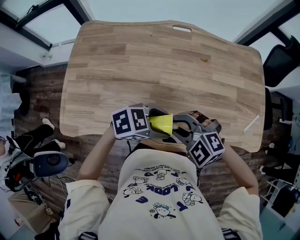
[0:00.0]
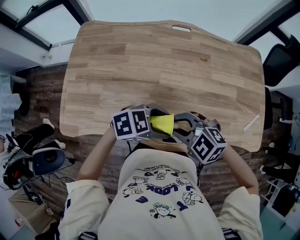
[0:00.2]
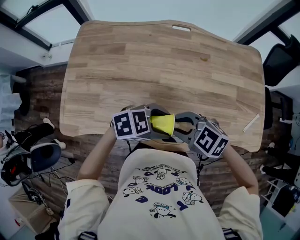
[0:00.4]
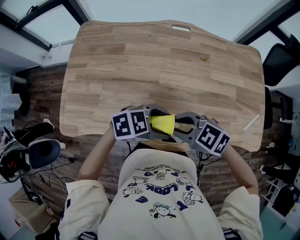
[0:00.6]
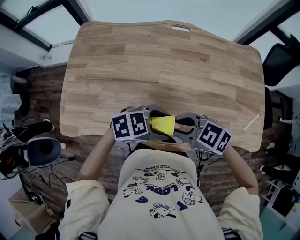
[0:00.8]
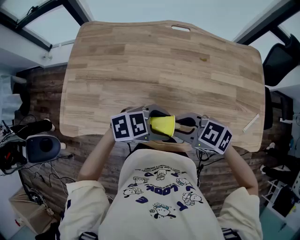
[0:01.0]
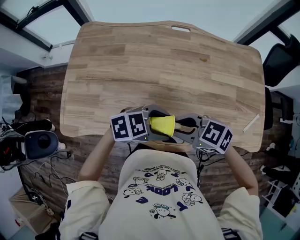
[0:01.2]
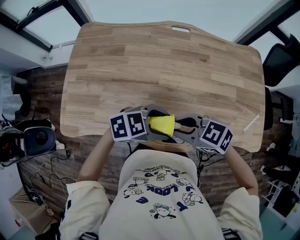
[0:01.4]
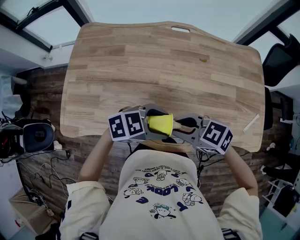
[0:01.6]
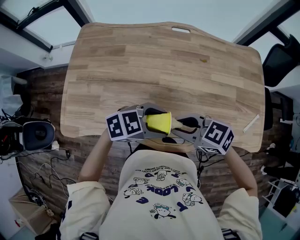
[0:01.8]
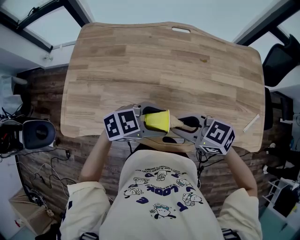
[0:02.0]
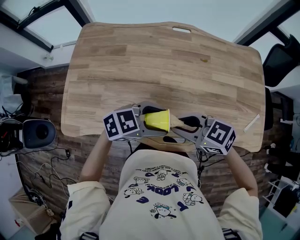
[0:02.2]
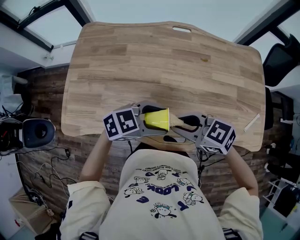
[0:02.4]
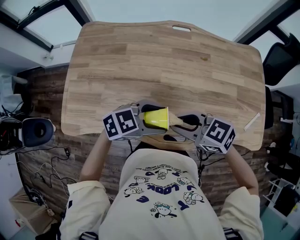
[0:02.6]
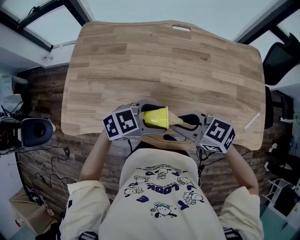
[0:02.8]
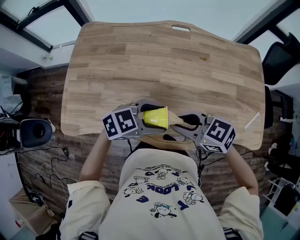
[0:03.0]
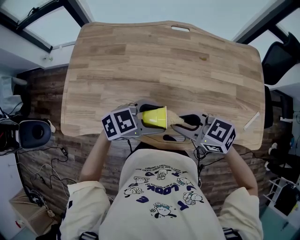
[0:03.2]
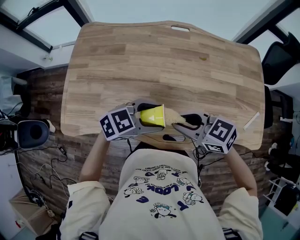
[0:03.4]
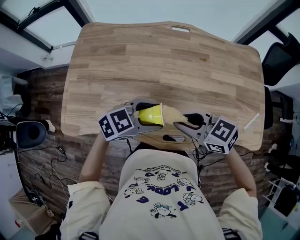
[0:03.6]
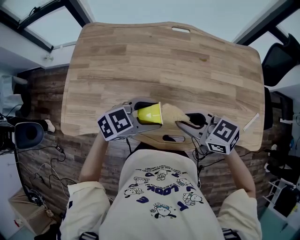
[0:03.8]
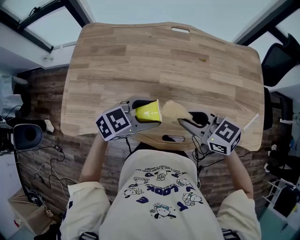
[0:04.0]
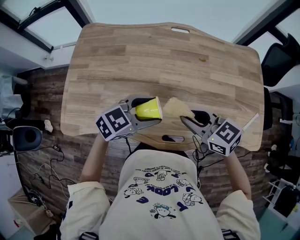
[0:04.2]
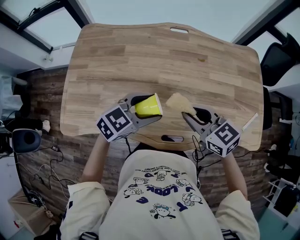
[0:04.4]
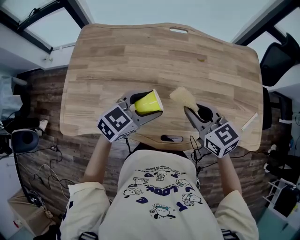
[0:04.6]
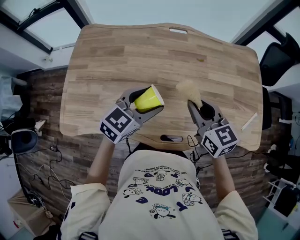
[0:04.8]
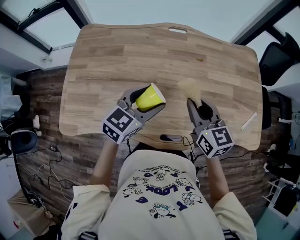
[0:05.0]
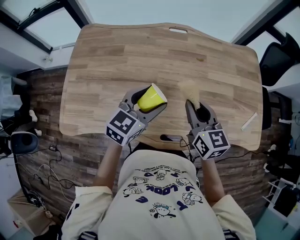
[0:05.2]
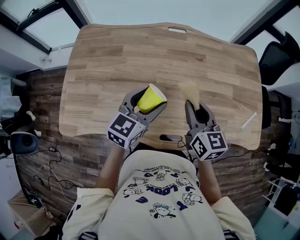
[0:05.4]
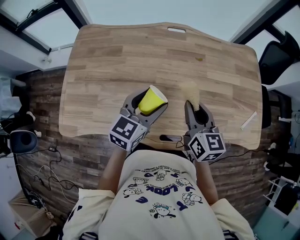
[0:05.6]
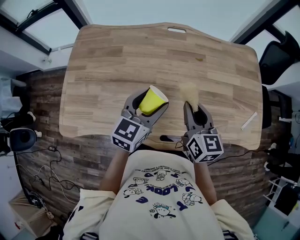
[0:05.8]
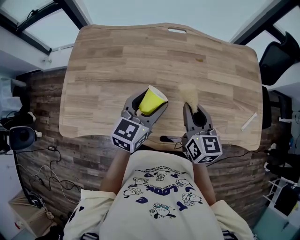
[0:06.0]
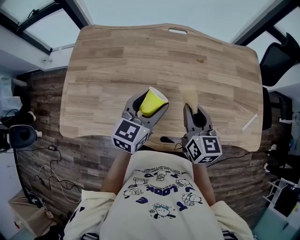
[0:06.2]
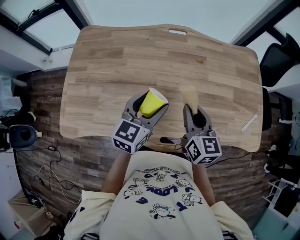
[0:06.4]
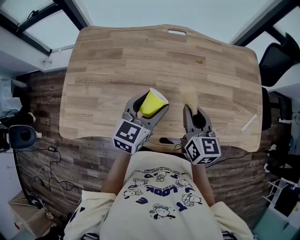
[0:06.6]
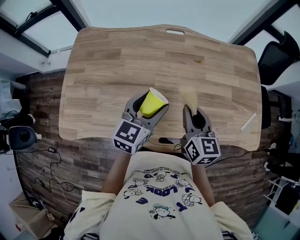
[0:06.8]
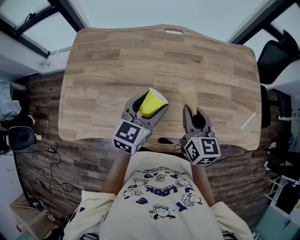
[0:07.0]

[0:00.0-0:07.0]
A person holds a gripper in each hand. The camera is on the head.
0:00.0 to 0:01.4: The right gripper rotates approximately 40 degrees.
0:01.4 to 0:02.8: There are only small adjustments of the grippers.
0:02.8 to 0:04.2: The right gripper shifts by some 5 cm.
0:04.2 to 0:05.6: The left gripper moves some 5 cm, and swivels roughly 30 degrees; the right gripper shifts by about 5 cm, and rotates about 50 degrees.
0:05.6 to 0:07.0: The grippers stay close to where they were, moving slightly.

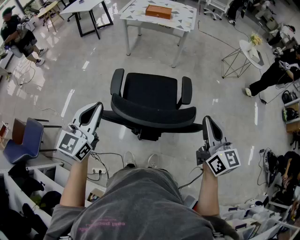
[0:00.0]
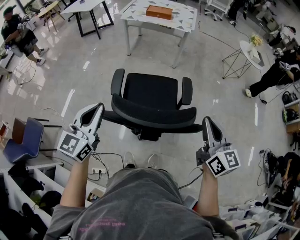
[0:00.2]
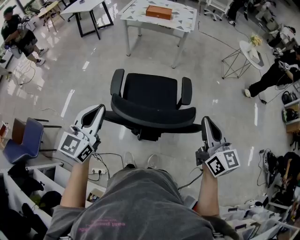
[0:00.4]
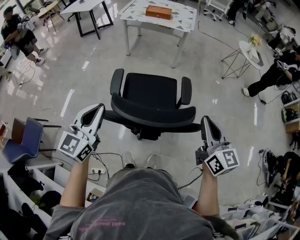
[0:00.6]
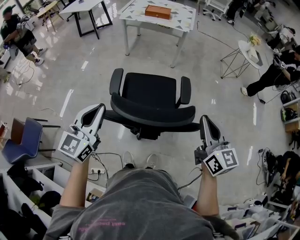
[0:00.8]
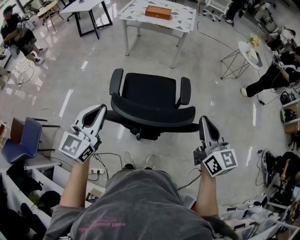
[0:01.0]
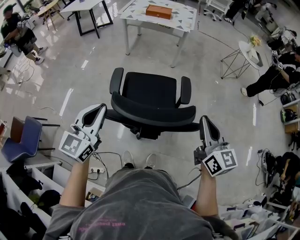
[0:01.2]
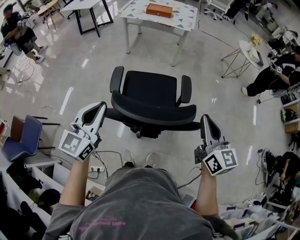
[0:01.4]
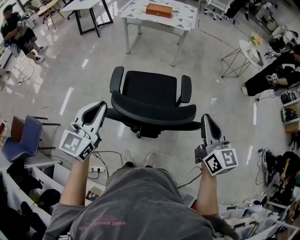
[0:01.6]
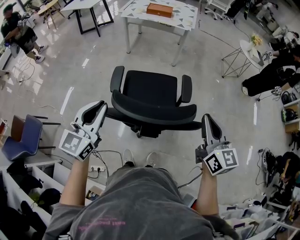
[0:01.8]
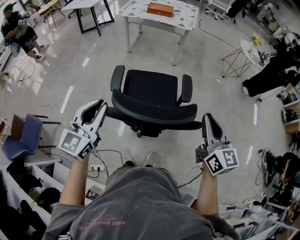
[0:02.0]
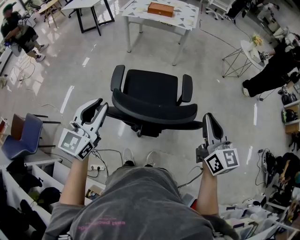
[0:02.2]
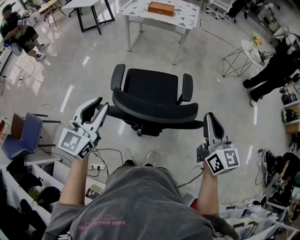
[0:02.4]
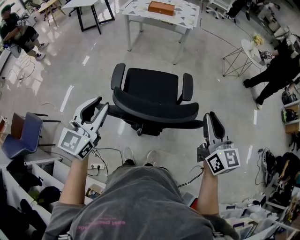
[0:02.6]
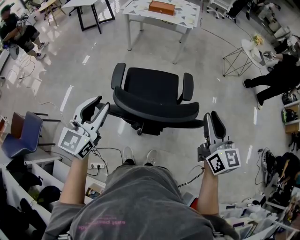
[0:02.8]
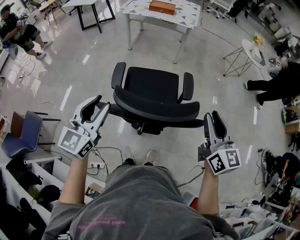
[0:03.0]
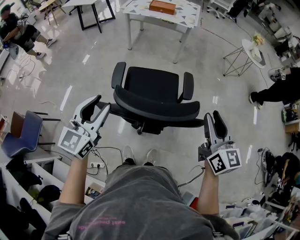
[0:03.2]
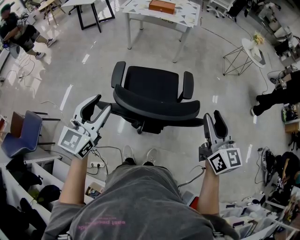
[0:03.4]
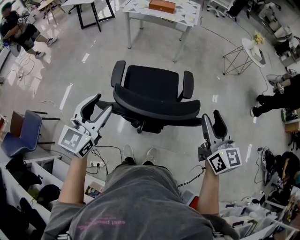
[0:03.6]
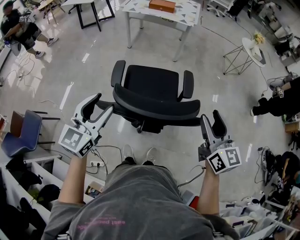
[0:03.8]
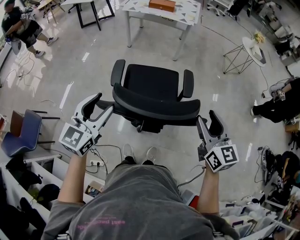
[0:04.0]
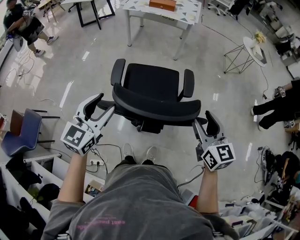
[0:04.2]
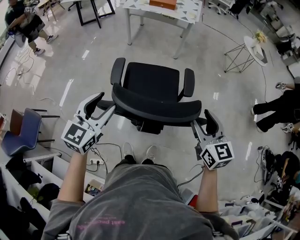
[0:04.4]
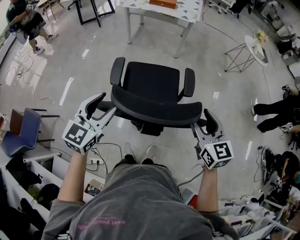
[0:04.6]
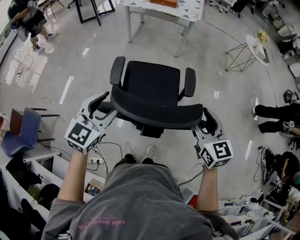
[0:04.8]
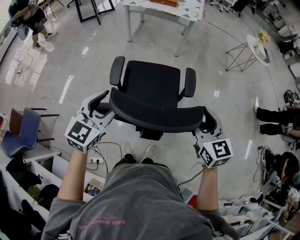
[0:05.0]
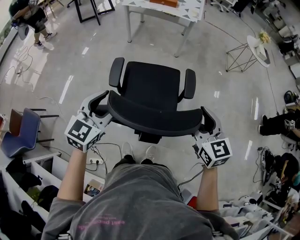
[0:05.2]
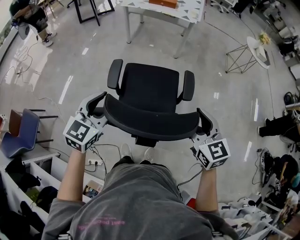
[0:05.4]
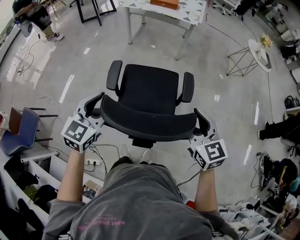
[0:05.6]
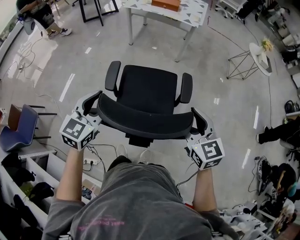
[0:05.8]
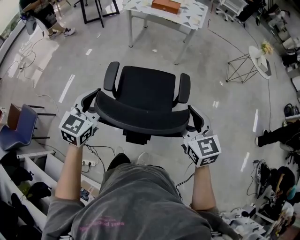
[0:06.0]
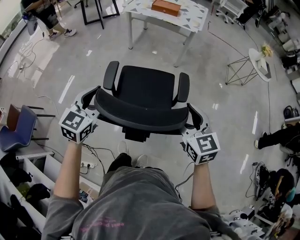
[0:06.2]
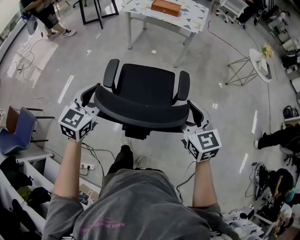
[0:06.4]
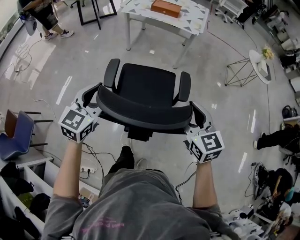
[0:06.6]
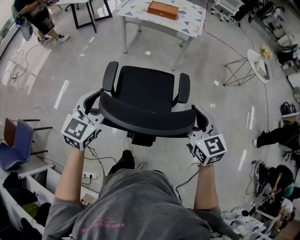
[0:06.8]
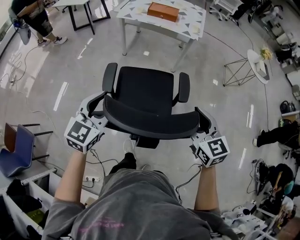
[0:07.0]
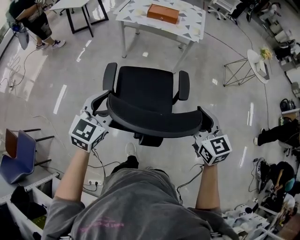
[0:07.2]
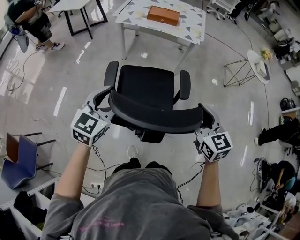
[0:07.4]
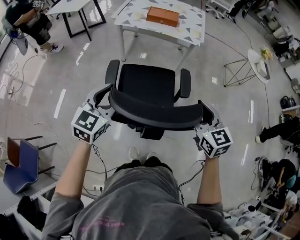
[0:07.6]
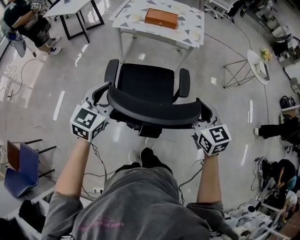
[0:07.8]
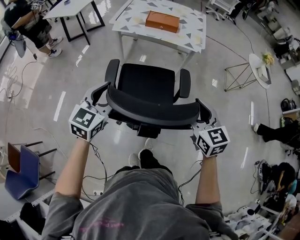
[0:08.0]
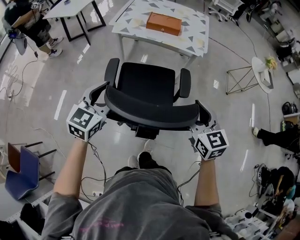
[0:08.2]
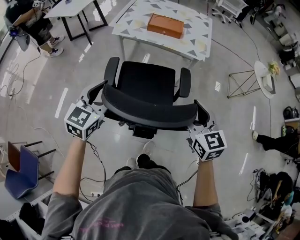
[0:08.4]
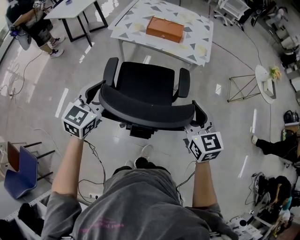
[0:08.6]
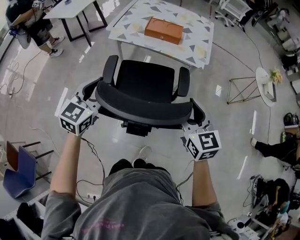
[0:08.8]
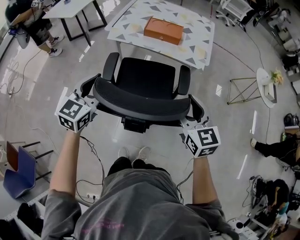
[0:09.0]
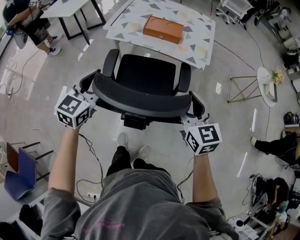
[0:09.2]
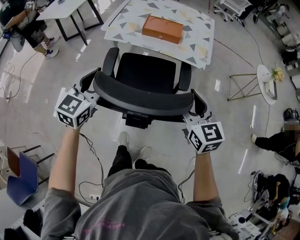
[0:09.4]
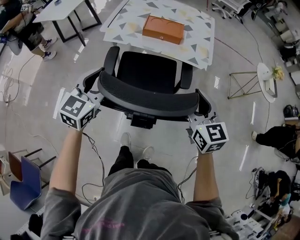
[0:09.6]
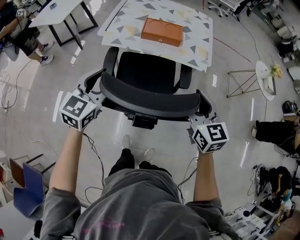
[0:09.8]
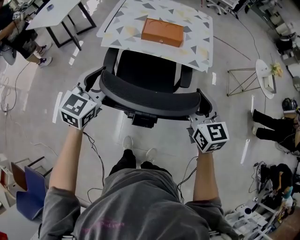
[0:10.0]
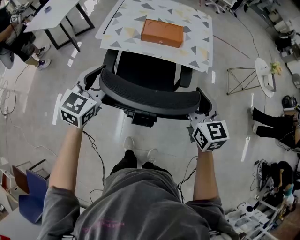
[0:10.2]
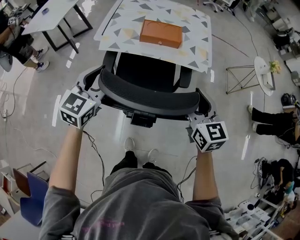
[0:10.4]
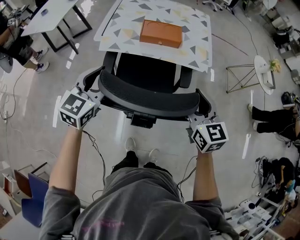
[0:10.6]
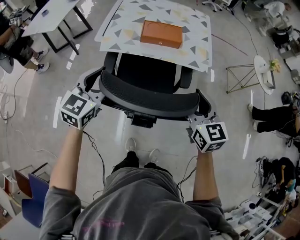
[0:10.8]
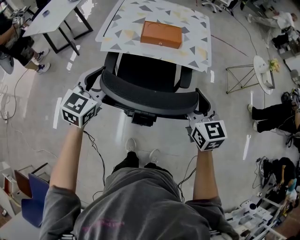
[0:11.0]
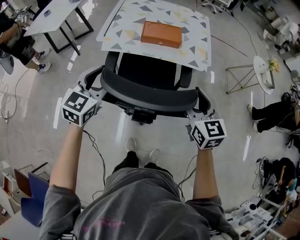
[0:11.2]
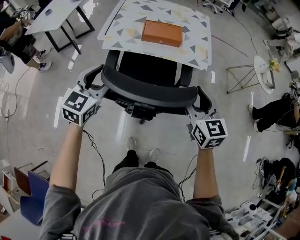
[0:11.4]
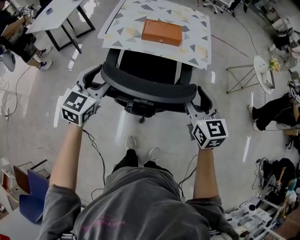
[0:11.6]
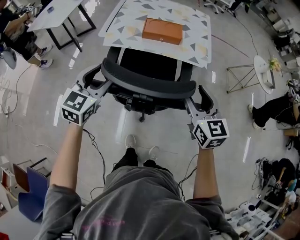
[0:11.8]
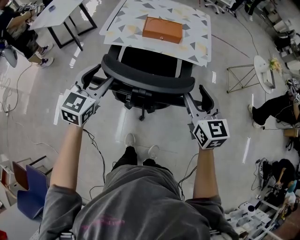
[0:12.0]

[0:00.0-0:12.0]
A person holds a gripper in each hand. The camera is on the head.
0:00.0 to 0:01.6: The grippers stay close to where they were, moving slightly.
0:01.6 to 0:03.0: The right gripper opens up. Meanwhile the left gripper opens.
0:03.0 to 0:04.4: The left gripper opens, while the right gripper is displaced downward by approximately 5 cm, and opens up.
0:04.4 to 0:06.0: The two grippers go some 10 cm forward.
0:06.0 to 0:07.6: Both grippers travel together forward, approximately 25 cm.
0:07.6 to 0:09.0: Both grippers move forward, approximately 25 cm.
0:09.0 to 0:10.4: The two grippers go roughly 15 cm forward.
0:10.4 to 0:12.0: Both grippers move backward, some 5 cm.

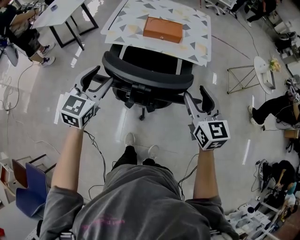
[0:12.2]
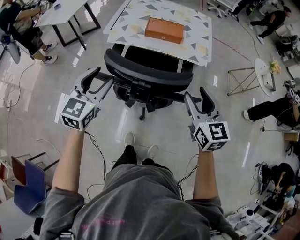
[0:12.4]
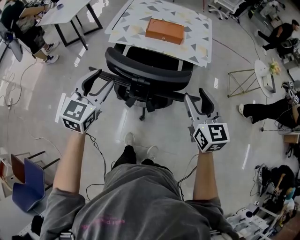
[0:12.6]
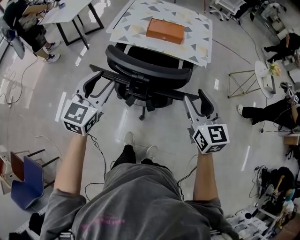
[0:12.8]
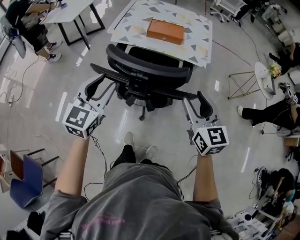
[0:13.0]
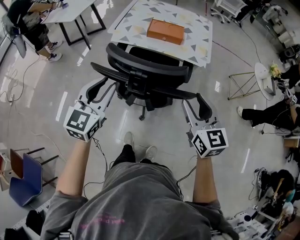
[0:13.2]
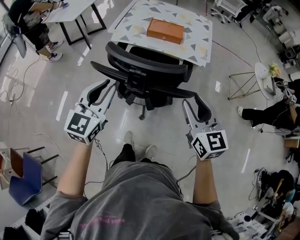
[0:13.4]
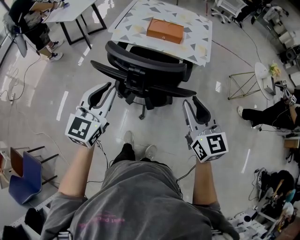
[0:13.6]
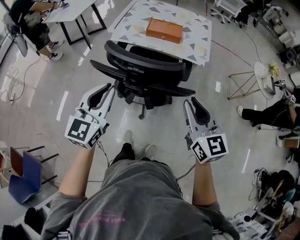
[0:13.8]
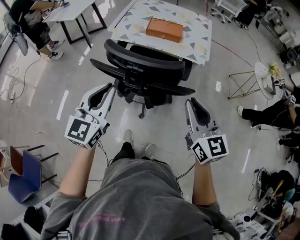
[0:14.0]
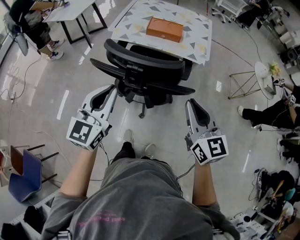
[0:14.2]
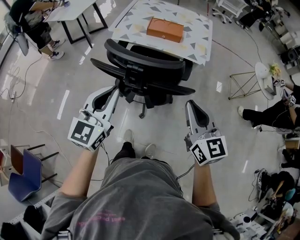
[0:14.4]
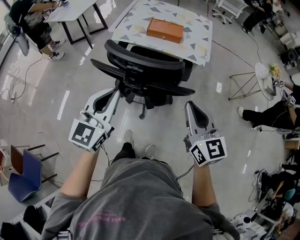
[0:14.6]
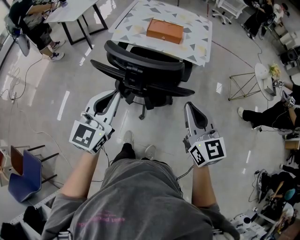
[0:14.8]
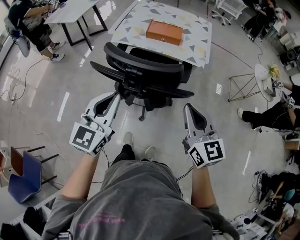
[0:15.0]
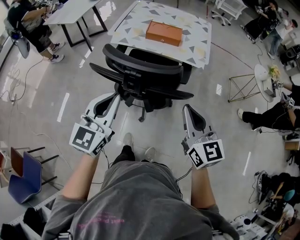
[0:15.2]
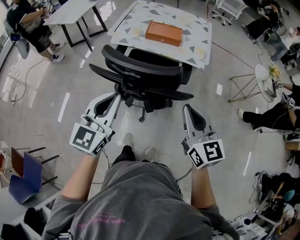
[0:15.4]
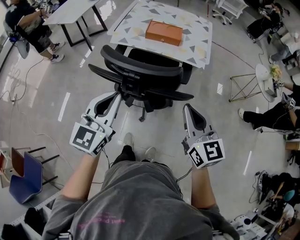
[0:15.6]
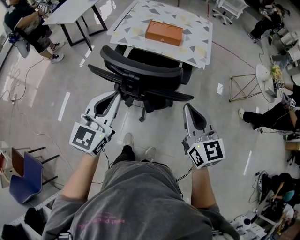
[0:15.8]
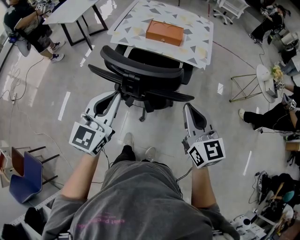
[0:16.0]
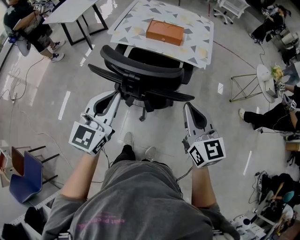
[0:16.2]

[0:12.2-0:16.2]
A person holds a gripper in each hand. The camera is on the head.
0:12.2 to 0:13.6: The right gripper is displaced backward by approximately 10 cm, and closes up, while the left gripper shifts approximately 15 cm backward and to the right, and closes up.
0:13.6 to 0:14.8: The right gripper closes its fingers.
0:14.8 to 0:16.2: The grippers move only a little.

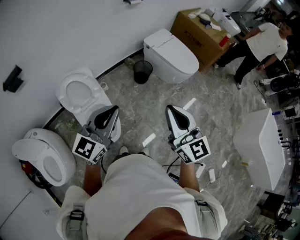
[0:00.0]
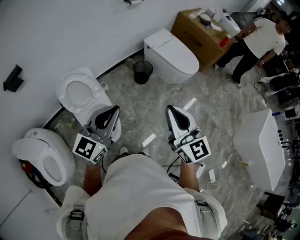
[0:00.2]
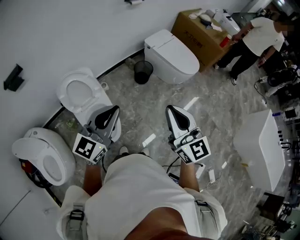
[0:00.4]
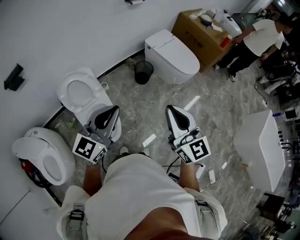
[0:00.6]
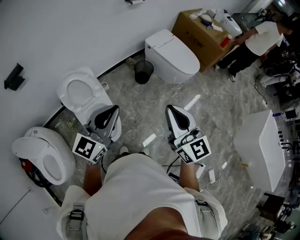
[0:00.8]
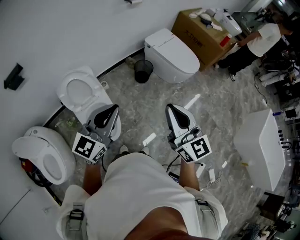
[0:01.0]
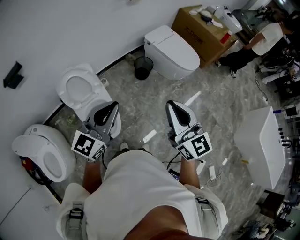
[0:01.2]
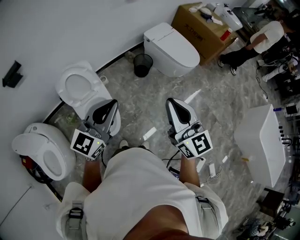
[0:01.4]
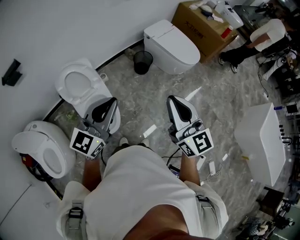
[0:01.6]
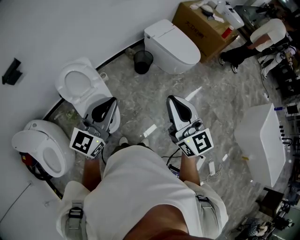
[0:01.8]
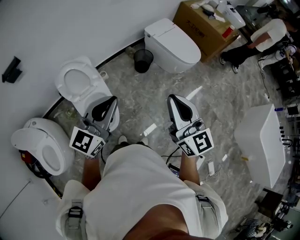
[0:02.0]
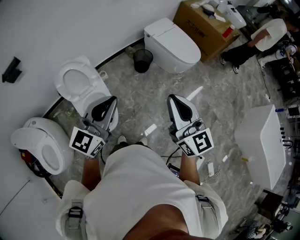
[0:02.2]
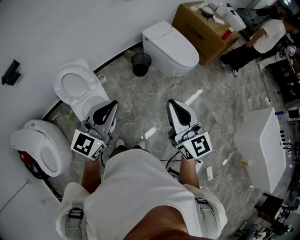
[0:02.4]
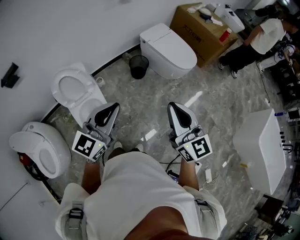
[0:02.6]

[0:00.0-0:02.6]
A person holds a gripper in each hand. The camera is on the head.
0:00.0 to 0:01.2: Neither gripper changes place.
0:01.2 to 0:02.6: The two grippers go some 10 cm to the right.
